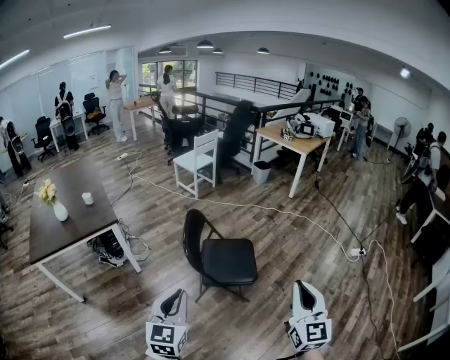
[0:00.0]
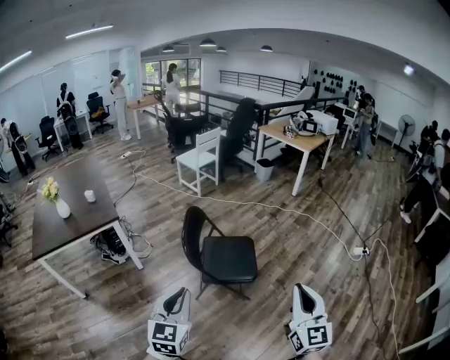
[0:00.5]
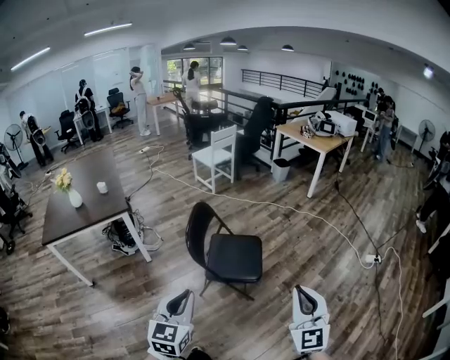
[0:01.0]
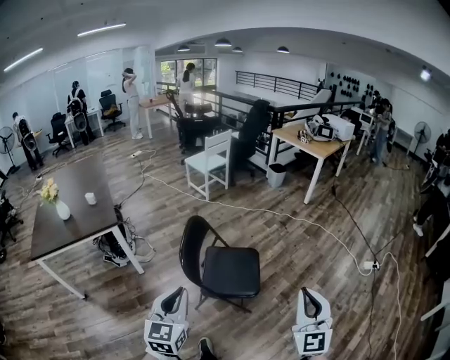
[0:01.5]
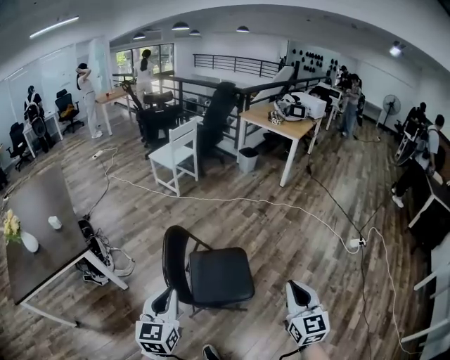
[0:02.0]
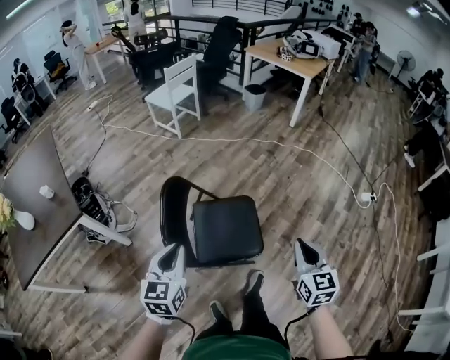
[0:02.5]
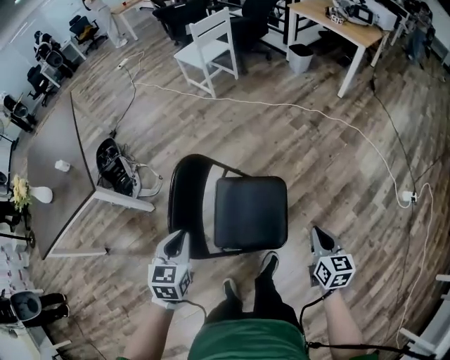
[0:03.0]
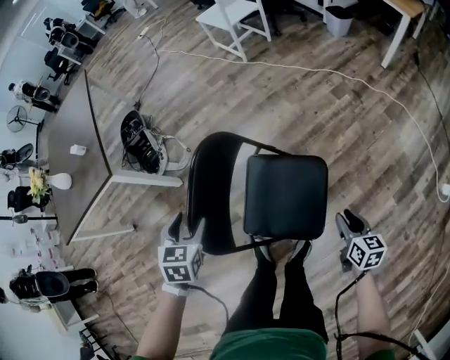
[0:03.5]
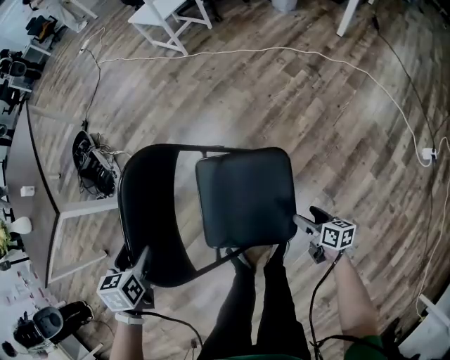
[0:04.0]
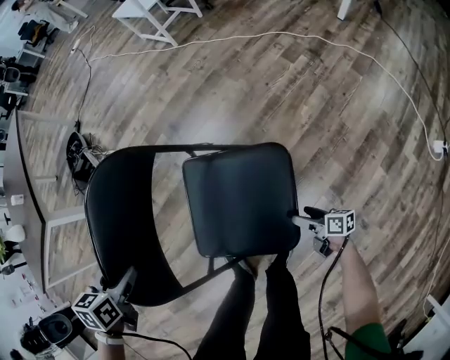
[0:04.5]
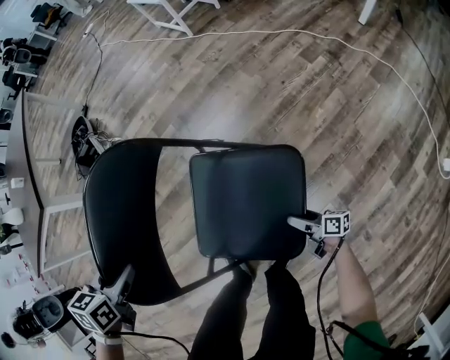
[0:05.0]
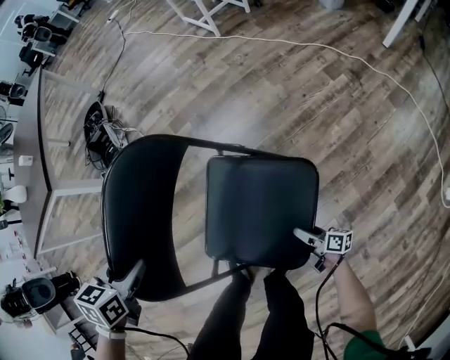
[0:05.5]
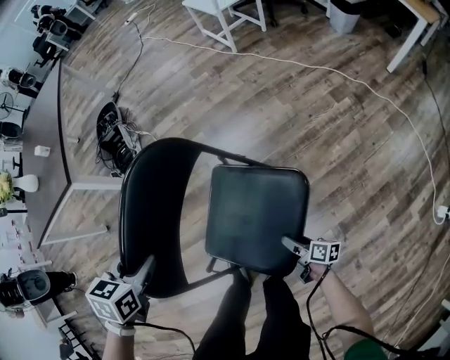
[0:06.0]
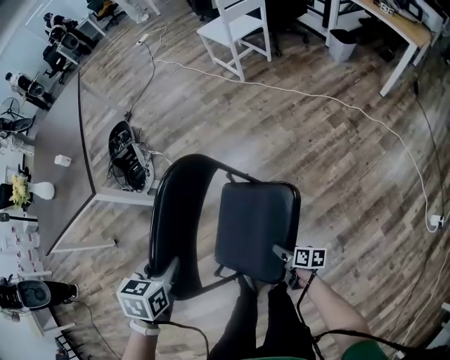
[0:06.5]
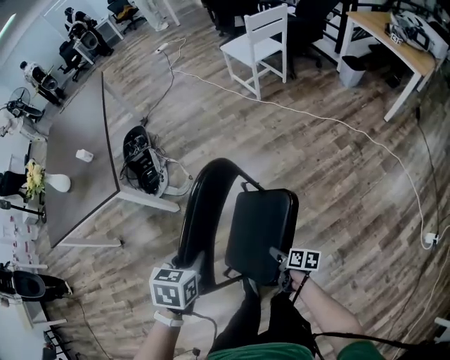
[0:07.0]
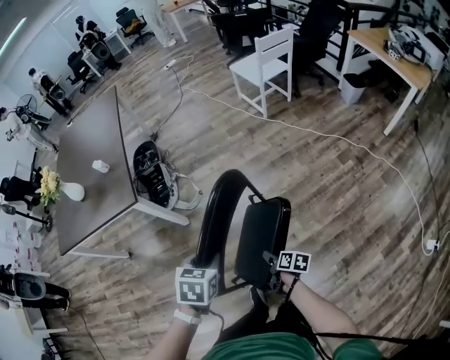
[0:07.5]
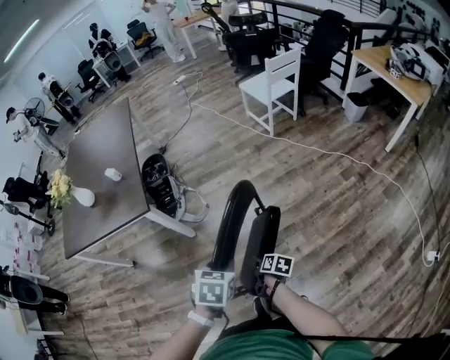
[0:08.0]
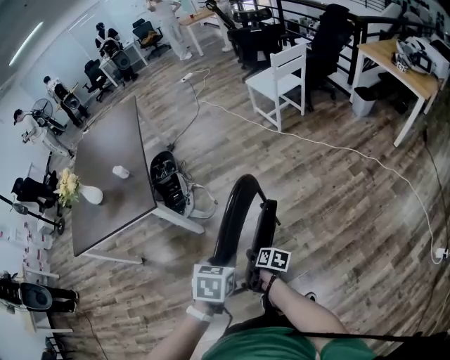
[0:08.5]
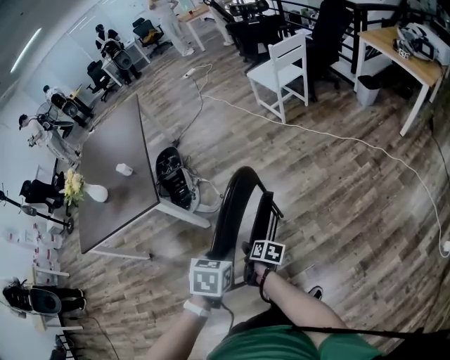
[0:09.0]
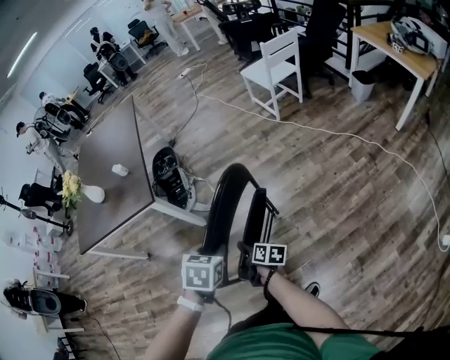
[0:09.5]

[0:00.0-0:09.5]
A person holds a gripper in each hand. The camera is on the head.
0:00.0 to 0:02.0: Both grippers move forward, roughly 25 cm.
0:02.0 to 0:04.0: The right gripper shifts approximately 60 cm downward, turns by roughly 70 degrees, and opens. The left gripper travels downward by some 35 cm, tips its fingers downward by some 50 degrees, and opens up.
0:04.0 to 0:05.5: The right gripper heads downward, covering some 15 cm, and changes its angle by some 30 degrees. Meanwhile the left gripper closes its fingers.
0:05.5 to 0:07.5: The left gripper is displaced upward by about 20 cm; the right gripper is displaced upward, to the left and forward by some 40 cm, and swivels roughly 30 degrees.
0:07.5 to 0:09.5: The right gripper travels to the left, upward and forward by some 15 cm.

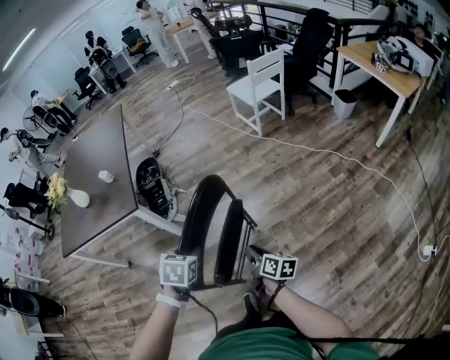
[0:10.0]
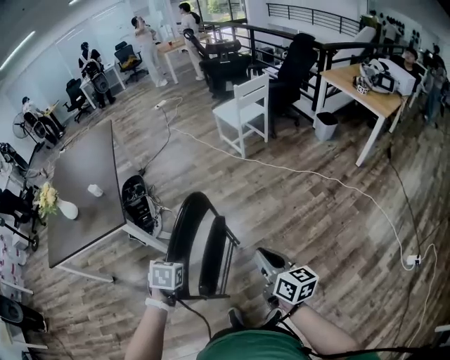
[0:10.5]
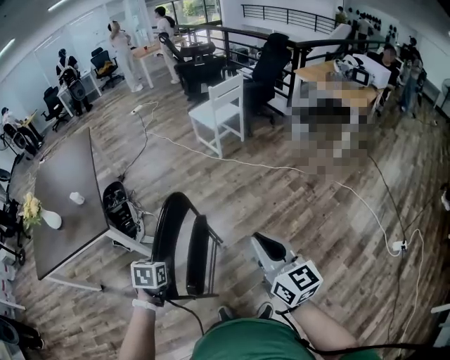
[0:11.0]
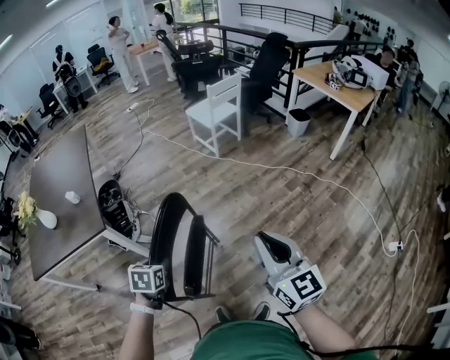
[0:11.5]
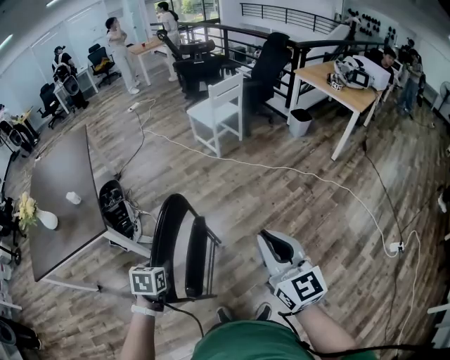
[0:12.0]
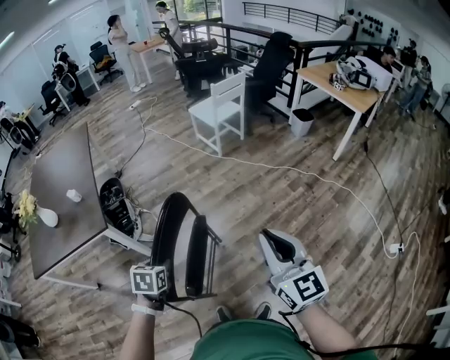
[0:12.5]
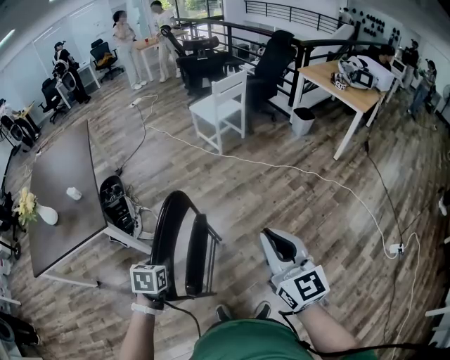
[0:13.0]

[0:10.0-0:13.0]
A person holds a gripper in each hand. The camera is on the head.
0:10.0 to 0:11.5: The right gripper goes roughly 30 cm upward, and twists some 50 degrees counterclockwise, seen from behind.
0:11.5 to 0:13.0: There are only small adjustments of the grippers.

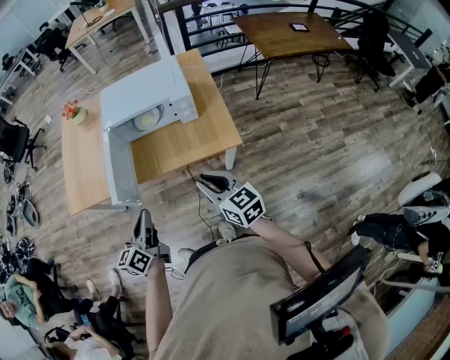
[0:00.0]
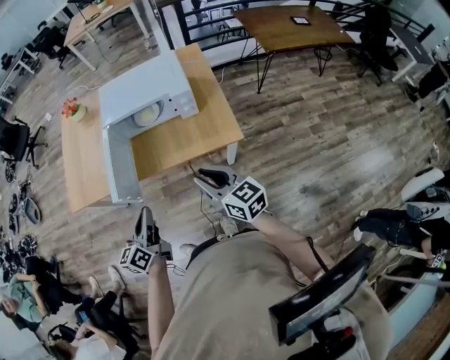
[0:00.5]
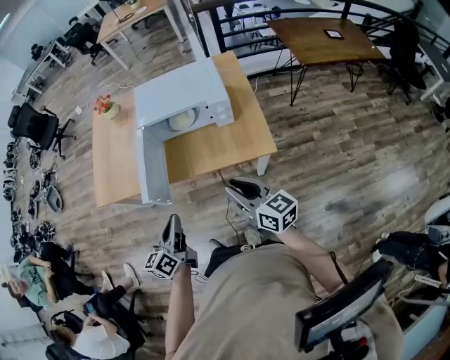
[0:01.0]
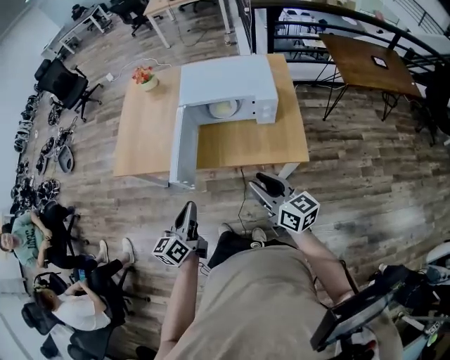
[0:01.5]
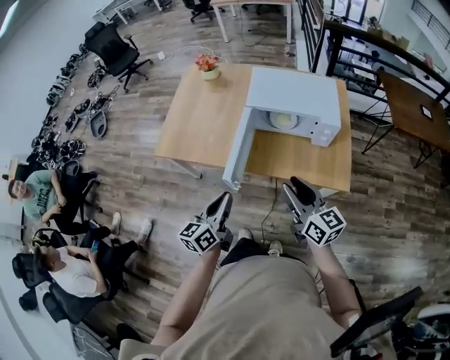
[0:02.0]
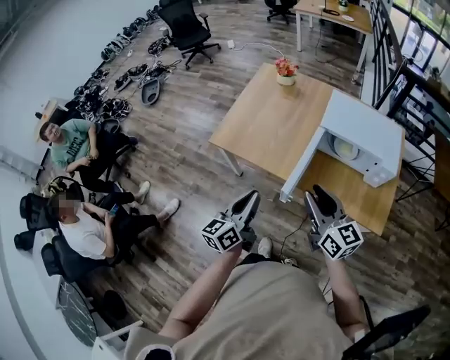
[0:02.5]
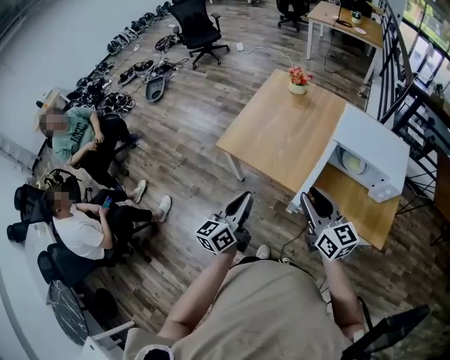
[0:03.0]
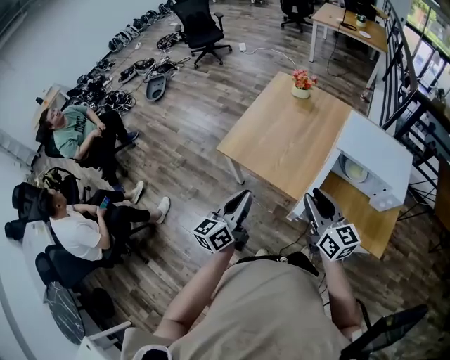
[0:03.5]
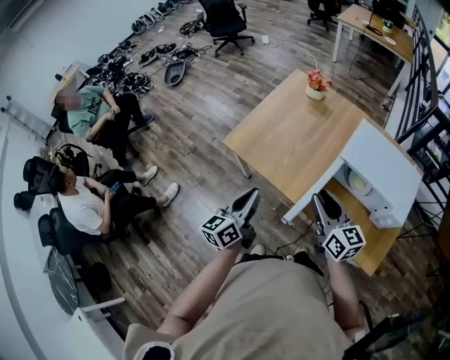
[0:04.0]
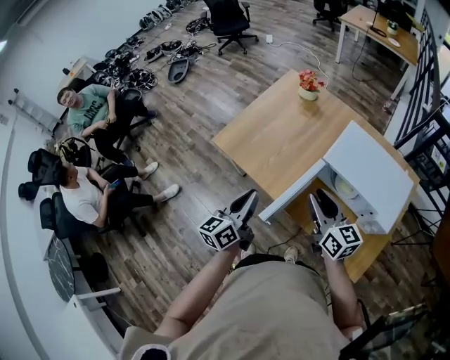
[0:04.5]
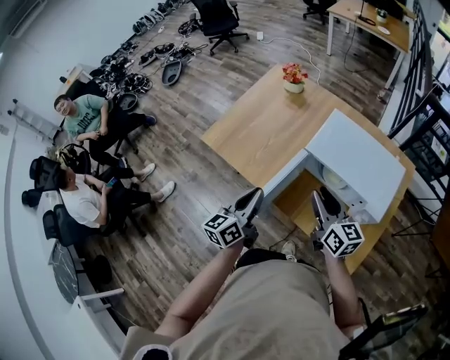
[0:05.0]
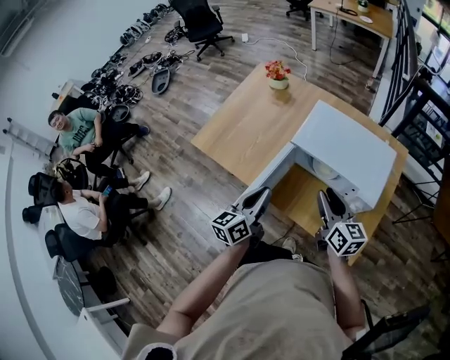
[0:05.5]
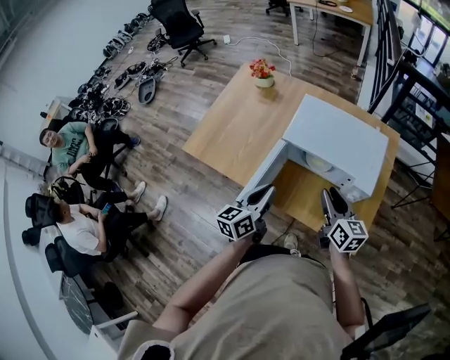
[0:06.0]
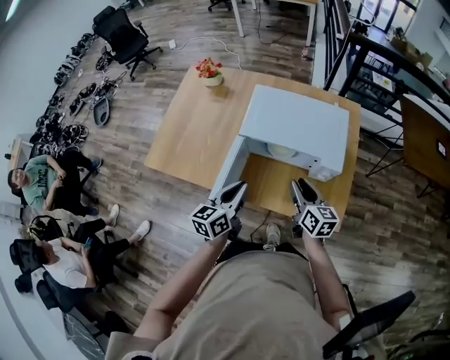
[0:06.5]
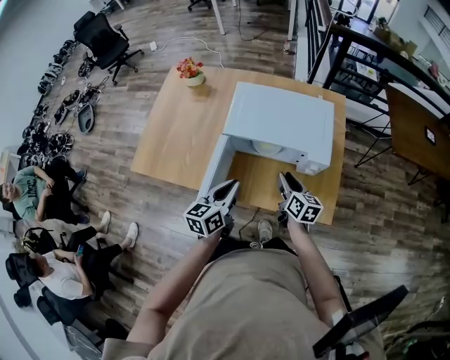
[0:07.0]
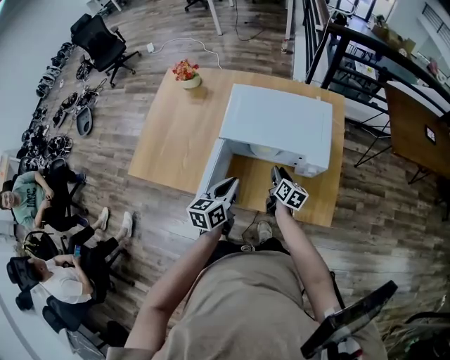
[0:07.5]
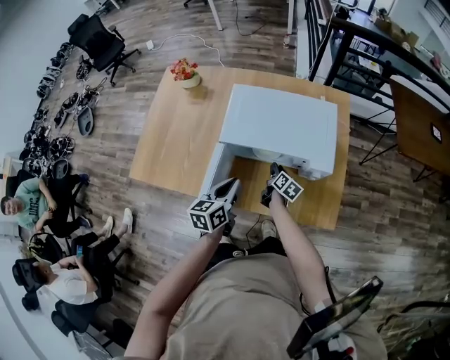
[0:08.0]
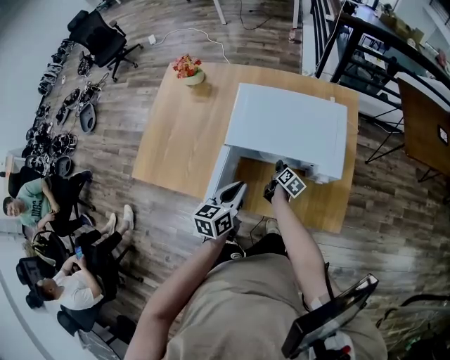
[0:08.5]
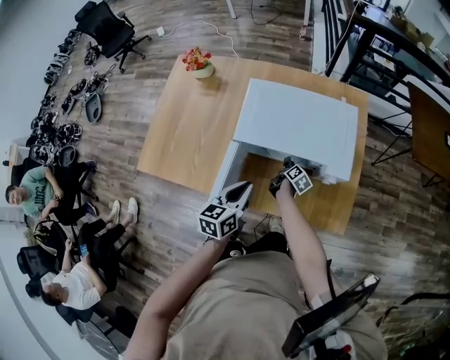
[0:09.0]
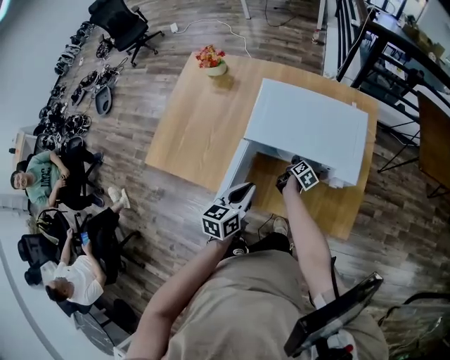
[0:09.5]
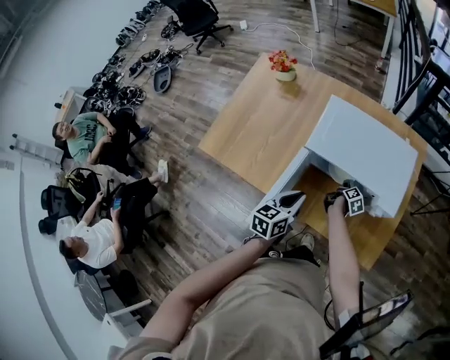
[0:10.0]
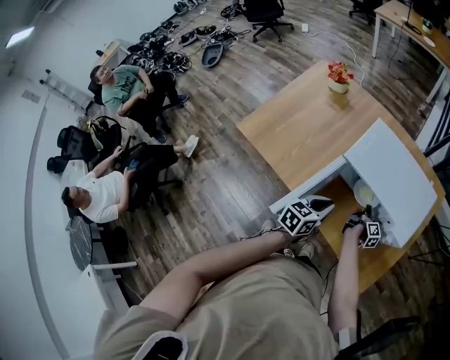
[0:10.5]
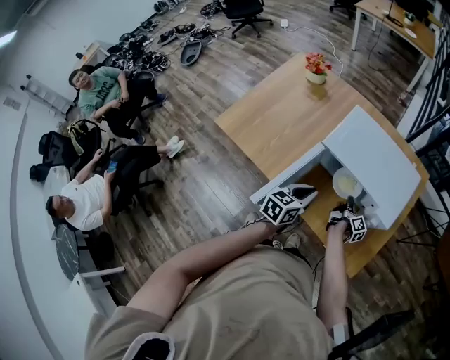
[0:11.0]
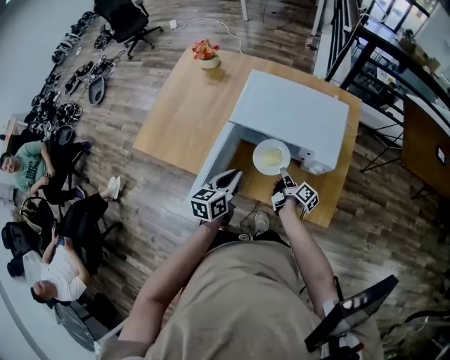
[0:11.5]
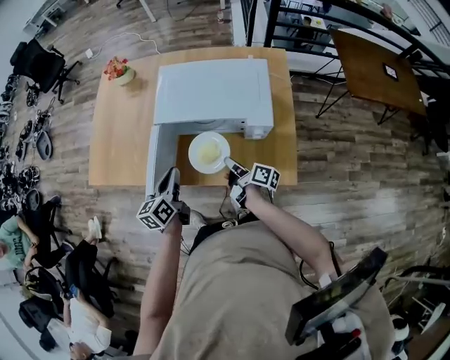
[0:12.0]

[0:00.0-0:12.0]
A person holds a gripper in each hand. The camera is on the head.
0:00.0 to 0:02.0: The right gripper moves to the left and forward, roughly 15 cm; the left gripper shifts roughly 10 cm to the left.
0:02.0 to 0:04.0: The right gripper moves forward and to the left, about 25 cm, while the left gripper travels to the left and forward by some 20 cm, and changes its angle by some 20 degrees.
0:04.0 to 0:06.0: The two grippers go about 25 cm to the right. The right gripper swivels some 20 degrees.
0:06.0 to 0:08.0: The right gripper travels downward by roughly 30 cm, and rotates roughly 50 degrees. Meanwhile the left gripper travels downward and forward by approximately 10 cm.
0:08.0 to 0:10.0: The right gripper heads downward, covering approximately 10 cm.
0:10.0 to 0:12.0: The right gripper shifts approximately 25 cm upward and backward, and swivels roughly 40 degrees.

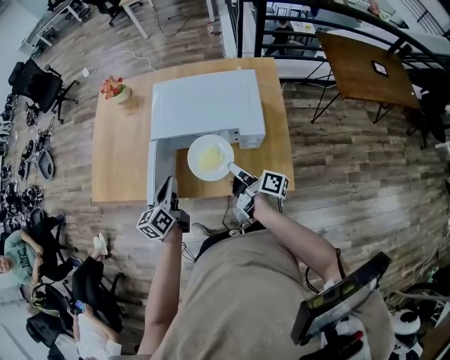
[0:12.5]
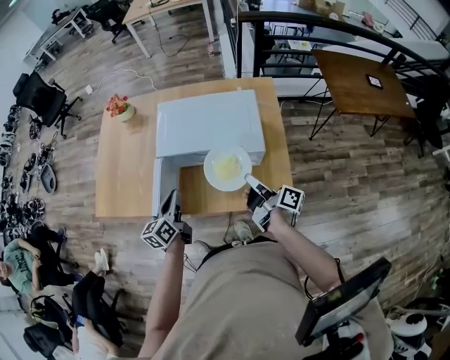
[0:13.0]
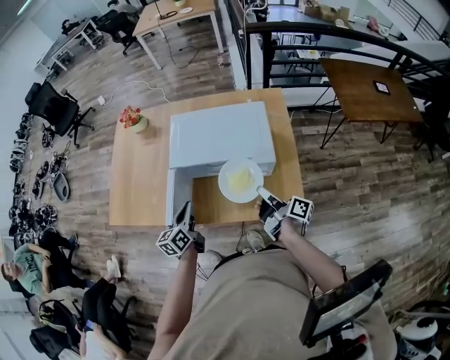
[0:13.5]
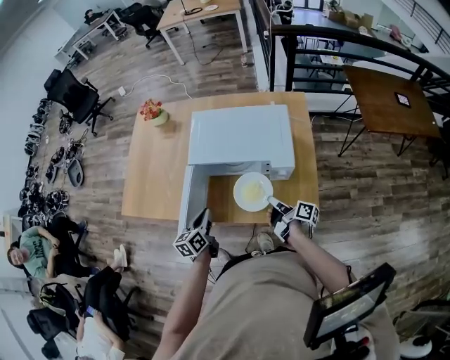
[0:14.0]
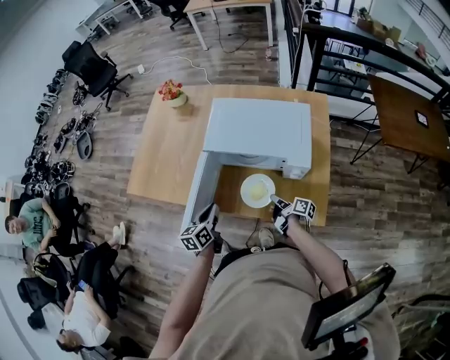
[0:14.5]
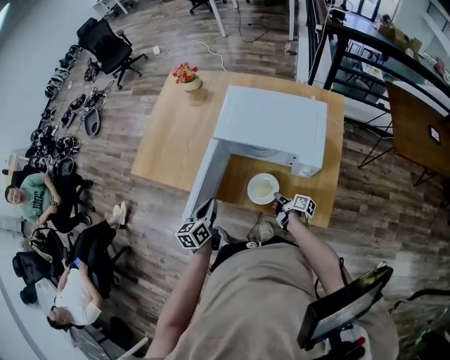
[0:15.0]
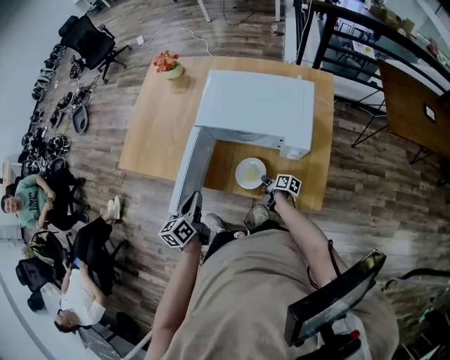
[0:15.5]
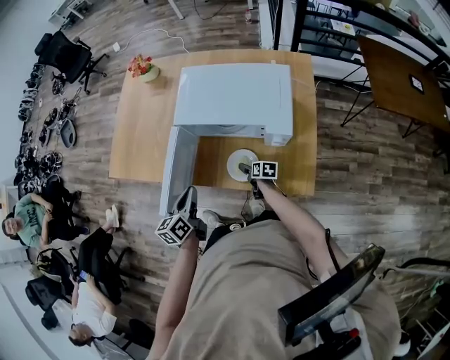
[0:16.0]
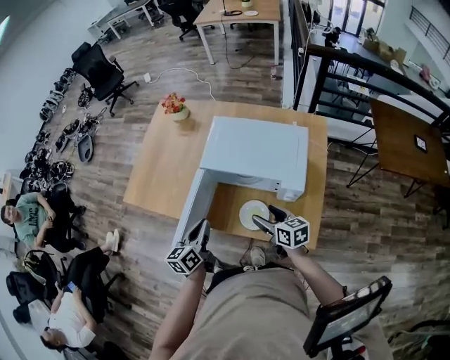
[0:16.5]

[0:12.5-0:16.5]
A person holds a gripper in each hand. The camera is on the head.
0:12.5 to 0:14.5: The left gripper heads downward, covering some 10 cm. The right gripper heads downward, covering about 15 cm.
0:14.5 to 0:16.5: The right gripper heads upward, covering some 15 cm, rolls counterclockwise, seen from behind, by about 50 degrees, and opens its fingers. Meanwhile the left gripper travels upward by about 10 cm.
